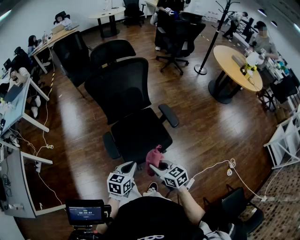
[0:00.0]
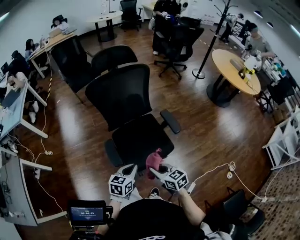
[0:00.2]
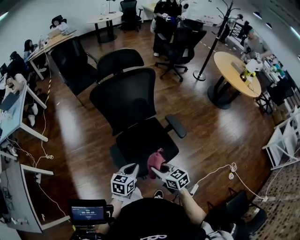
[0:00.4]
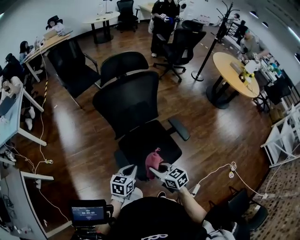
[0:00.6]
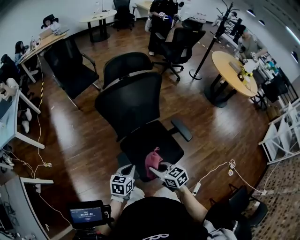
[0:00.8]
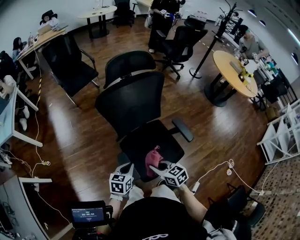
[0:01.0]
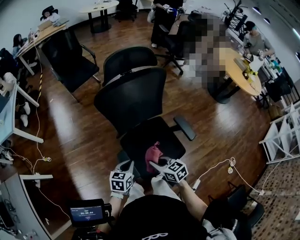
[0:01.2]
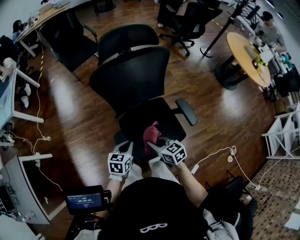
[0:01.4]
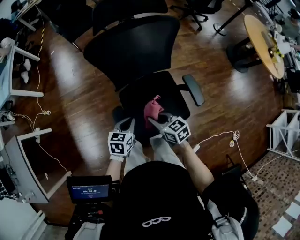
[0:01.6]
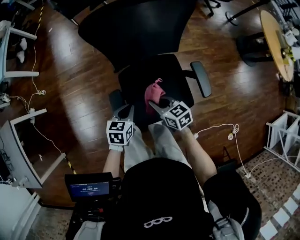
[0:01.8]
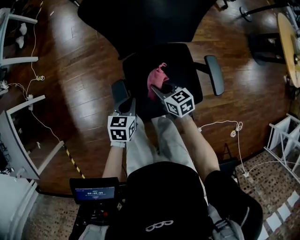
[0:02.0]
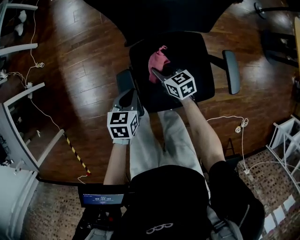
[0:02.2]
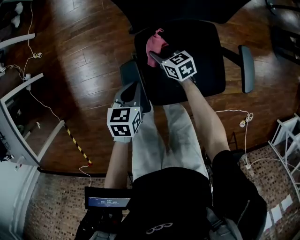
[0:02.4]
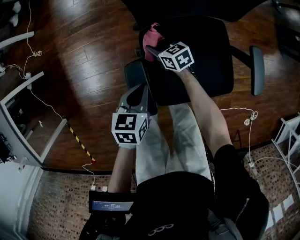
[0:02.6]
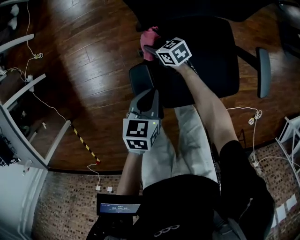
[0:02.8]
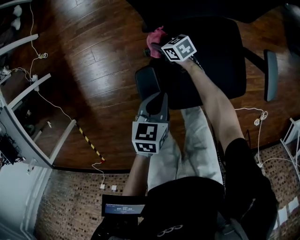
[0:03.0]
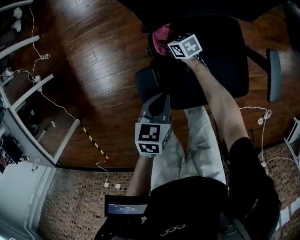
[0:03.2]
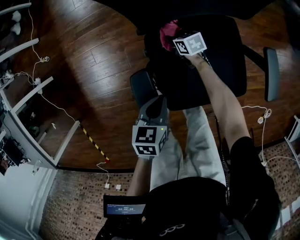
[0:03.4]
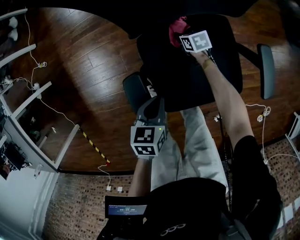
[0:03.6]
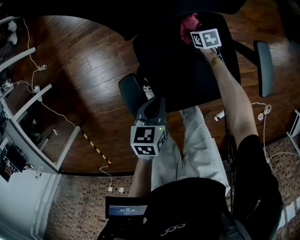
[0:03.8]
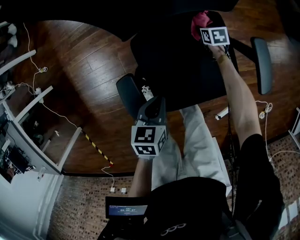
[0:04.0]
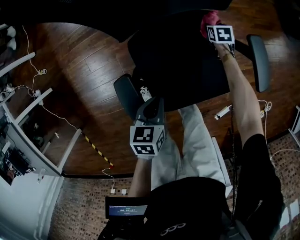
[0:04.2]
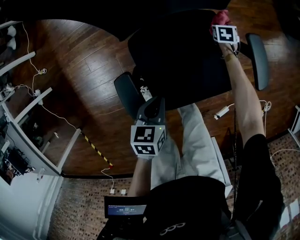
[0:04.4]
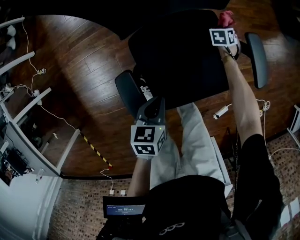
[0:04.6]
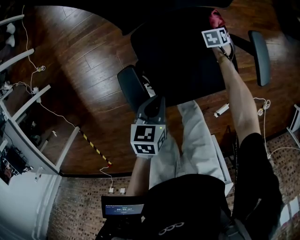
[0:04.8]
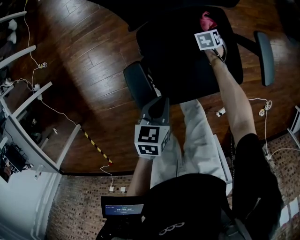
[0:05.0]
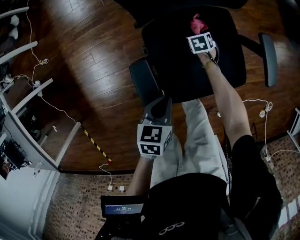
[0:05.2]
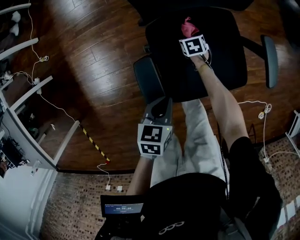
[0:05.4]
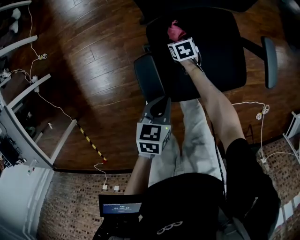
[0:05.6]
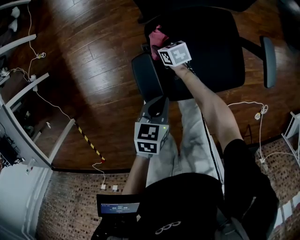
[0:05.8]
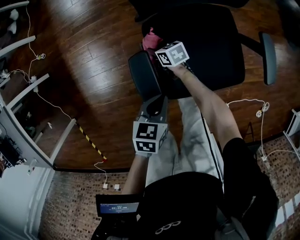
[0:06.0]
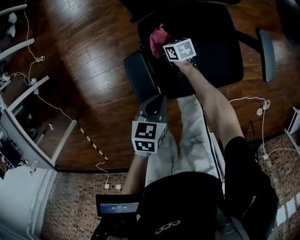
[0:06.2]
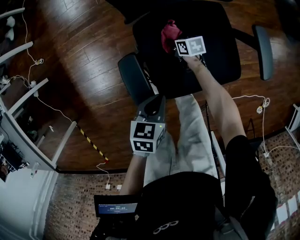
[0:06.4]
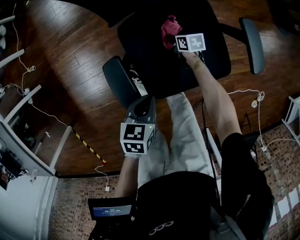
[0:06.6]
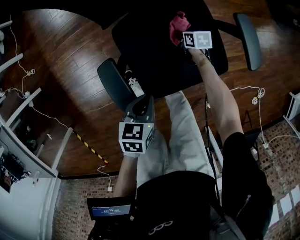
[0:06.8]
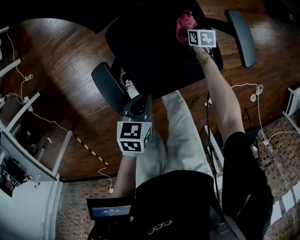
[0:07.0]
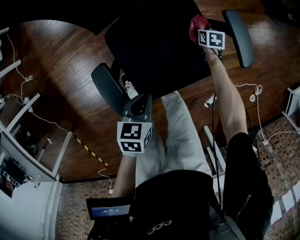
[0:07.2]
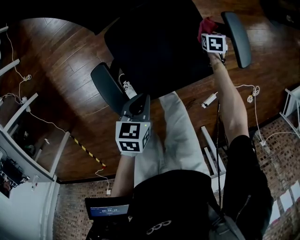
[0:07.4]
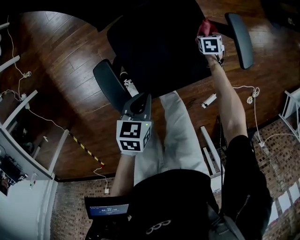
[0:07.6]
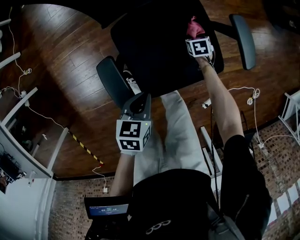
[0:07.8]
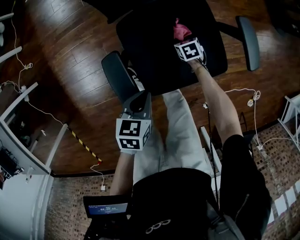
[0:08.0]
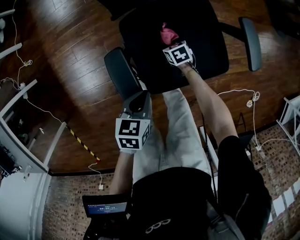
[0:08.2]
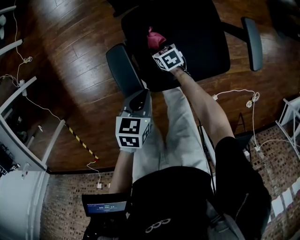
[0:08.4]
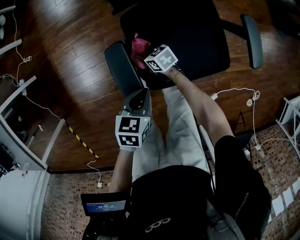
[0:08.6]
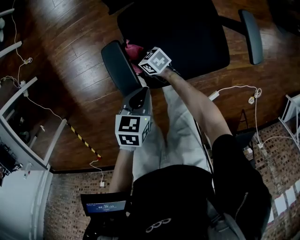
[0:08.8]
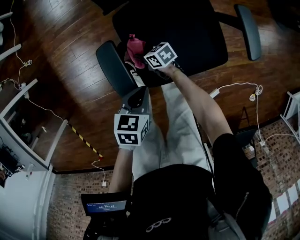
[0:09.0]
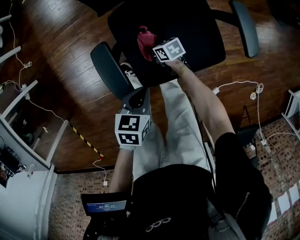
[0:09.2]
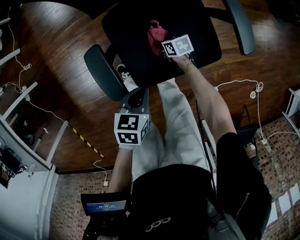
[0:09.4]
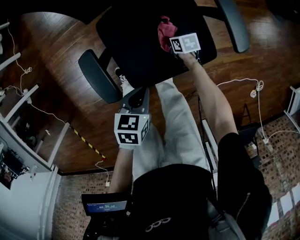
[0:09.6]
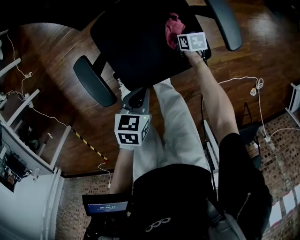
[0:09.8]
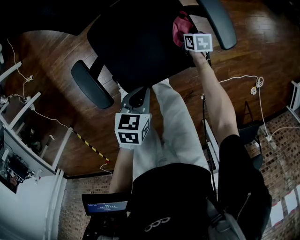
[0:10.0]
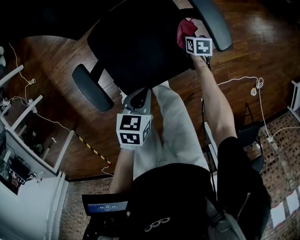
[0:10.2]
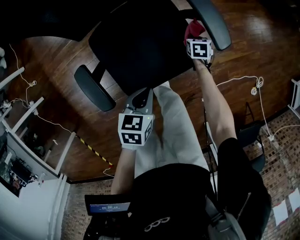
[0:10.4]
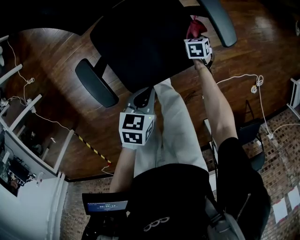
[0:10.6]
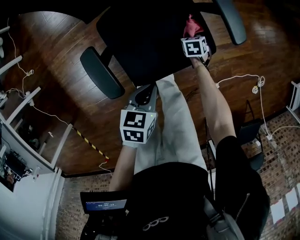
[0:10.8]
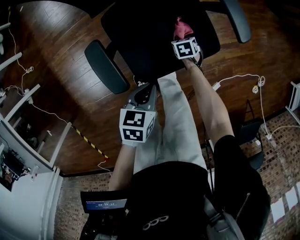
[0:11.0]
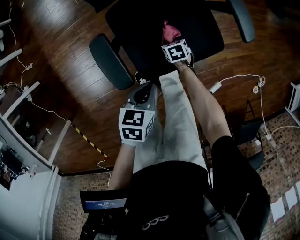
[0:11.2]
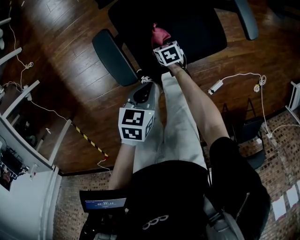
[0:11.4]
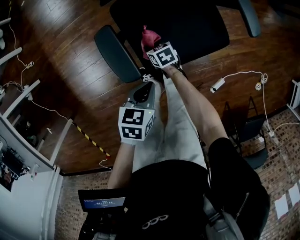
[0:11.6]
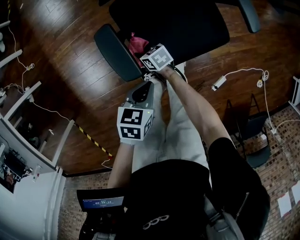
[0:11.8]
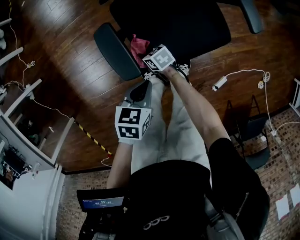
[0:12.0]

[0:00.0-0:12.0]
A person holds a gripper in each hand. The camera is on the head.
0:00.0 to 0:01.6: Both grippers move forward, approximately 20 cm.
0:01.6 to 0:03.0: The left gripper travels downward by about 20 cm. The right gripper travels downward and forward by some 40 cm, and changes its angle by roughly 20 degrees.
0:03.0 to 0:04.4: The left gripper changes place by some 5 cm; the right gripper ends up roughly 40 cm from where it was, and changes its angle by about 60 degrees.
0:04.4 to 0:06.0: The right gripper changes place by roughly 40 cm, and swivels some 50 degrees. The left gripper moves approximately 10 cm.
0:06.0 to 0:07.6: The left gripper changes place by roughly 10 cm. Meanwhile the right gripper moves about 40 cm, and swivels approximately 50 degrees.
0:07.6 to 0:09.0: The right gripper moves approximately 40 cm, and points its fingers some 30 degrees further upward, while the left gripper ends up approximately 5 cm from where it was.
0:09.0 to 0:10.4: The right gripper moves roughly 40 cm, and changes its angle by approximately 60 degrees; the left gripper shifts by about 15 cm.
0:10.4 to 0:12.0: The left gripper moves about 15 cm; the right gripper ends up roughly 40 cm from where it was, and turns by approximately 50 degrees.

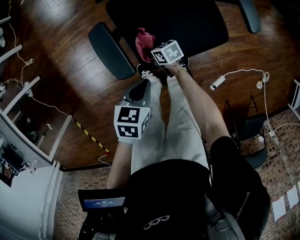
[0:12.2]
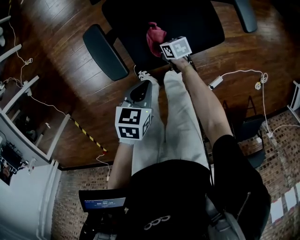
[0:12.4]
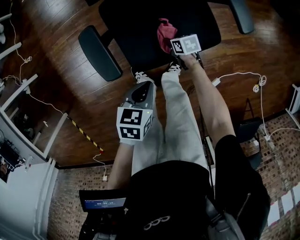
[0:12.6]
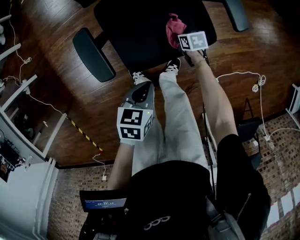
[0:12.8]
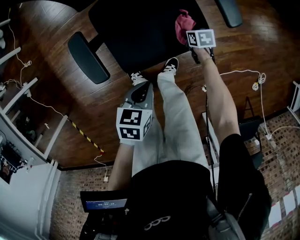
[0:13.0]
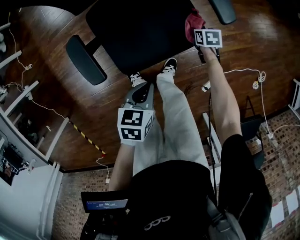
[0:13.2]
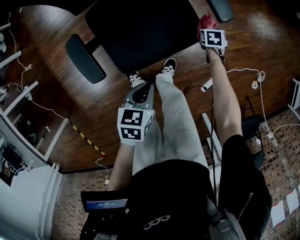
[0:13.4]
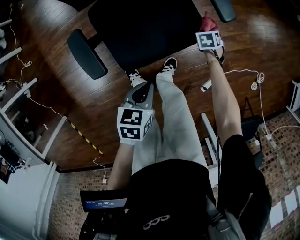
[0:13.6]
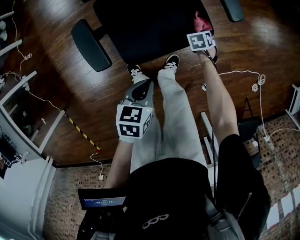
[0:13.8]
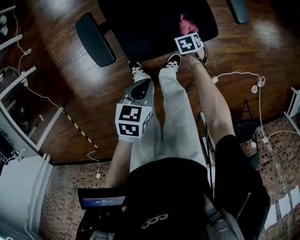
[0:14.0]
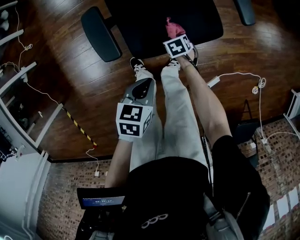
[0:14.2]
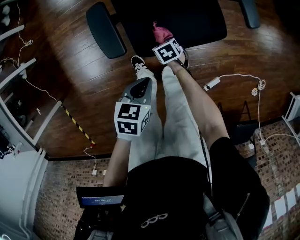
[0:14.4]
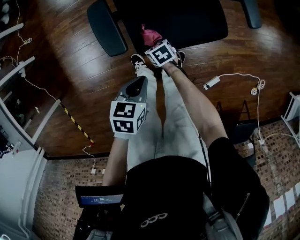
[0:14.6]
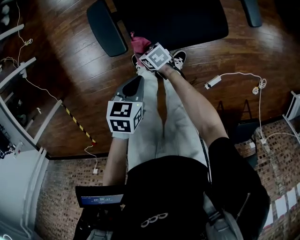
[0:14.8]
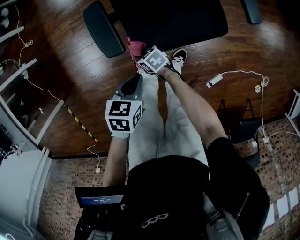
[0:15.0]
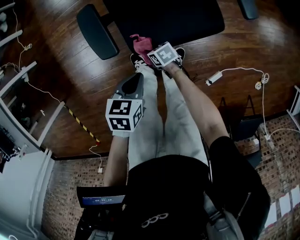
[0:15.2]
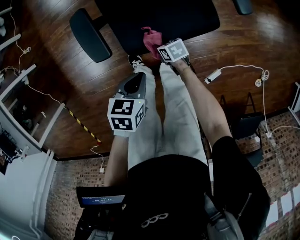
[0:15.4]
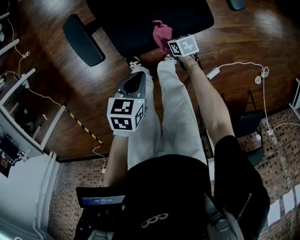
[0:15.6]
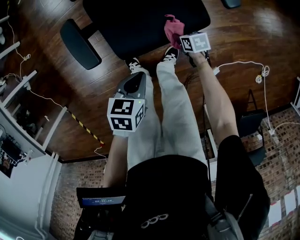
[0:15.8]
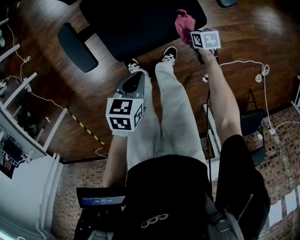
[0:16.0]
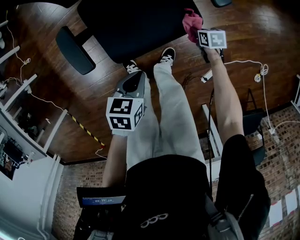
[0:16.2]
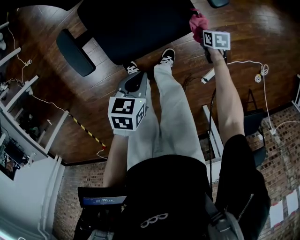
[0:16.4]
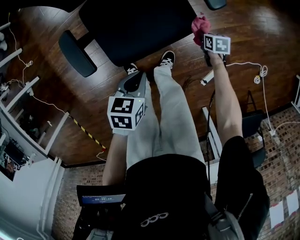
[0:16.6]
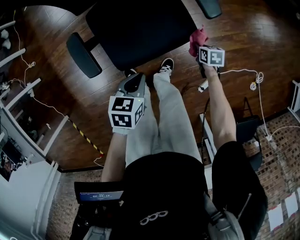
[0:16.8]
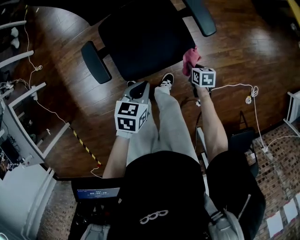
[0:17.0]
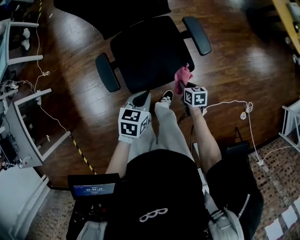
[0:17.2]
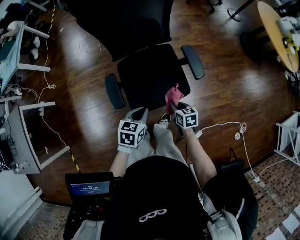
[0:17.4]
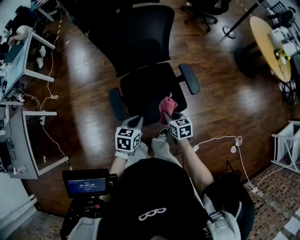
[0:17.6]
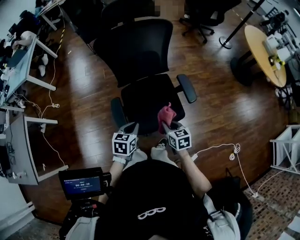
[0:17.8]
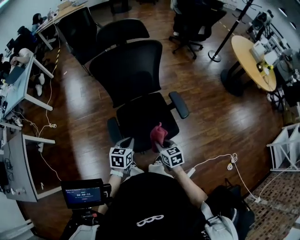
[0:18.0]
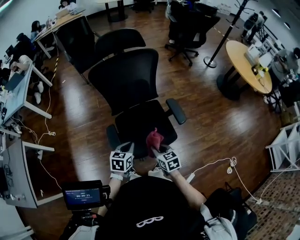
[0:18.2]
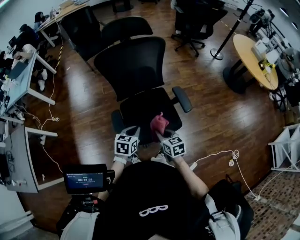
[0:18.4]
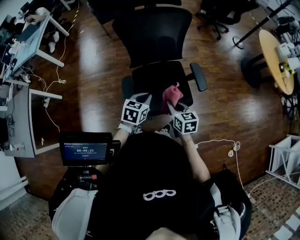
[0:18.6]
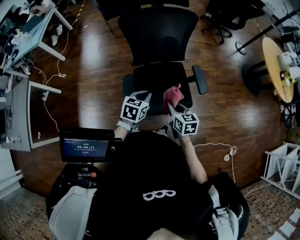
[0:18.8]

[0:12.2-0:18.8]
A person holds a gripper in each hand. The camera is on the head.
0:12.2 to 0:13.8: The right gripper shifts by roughly 35 cm, and tilts its fingers about 30 degrees downward. The left gripper ends up about 10 cm from where it was.
0:13.8 to 0:15.4: The right gripper turns by roughly 40 degrees.
0:15.4 to 0:17.2: The grippers both shift upward by some 15 cm. The right gripper changes its angle by about 30 degrees.
0:17.2 to 0:18.8: The left gripper shifts about 15 cm upward, to the left and forward. Meanwhile the right gripper is displaced upward and to the left by some 30 cm, and swivels roughly 20 degrees.

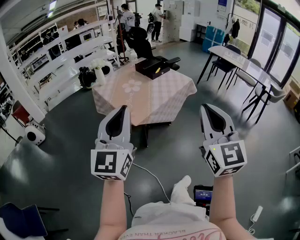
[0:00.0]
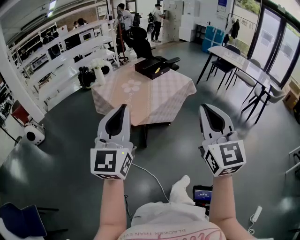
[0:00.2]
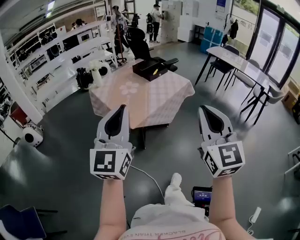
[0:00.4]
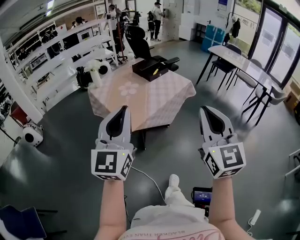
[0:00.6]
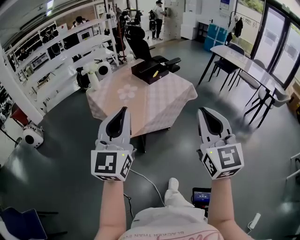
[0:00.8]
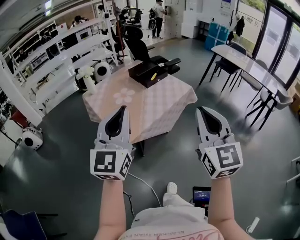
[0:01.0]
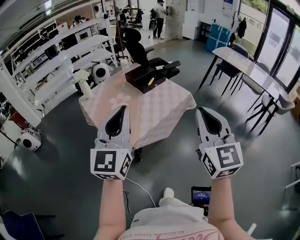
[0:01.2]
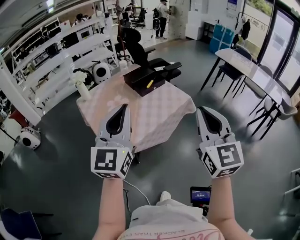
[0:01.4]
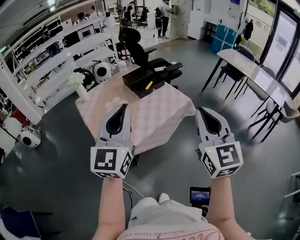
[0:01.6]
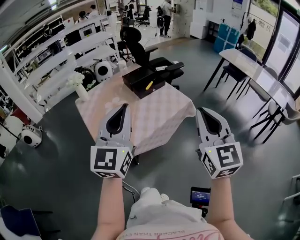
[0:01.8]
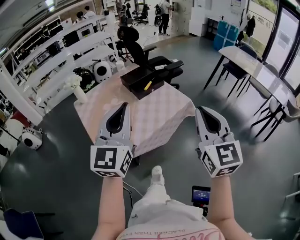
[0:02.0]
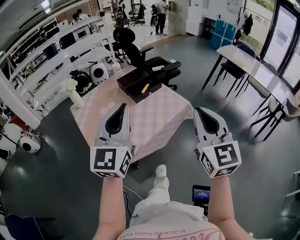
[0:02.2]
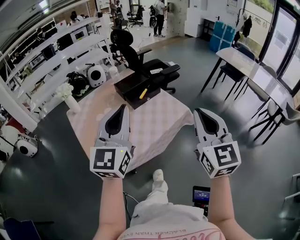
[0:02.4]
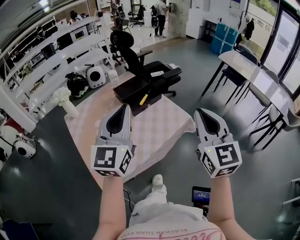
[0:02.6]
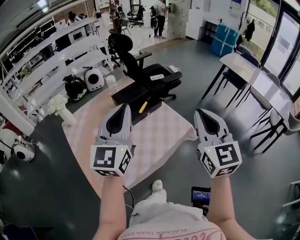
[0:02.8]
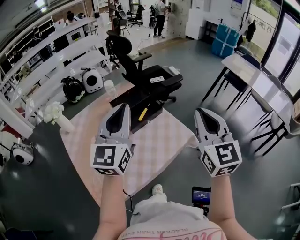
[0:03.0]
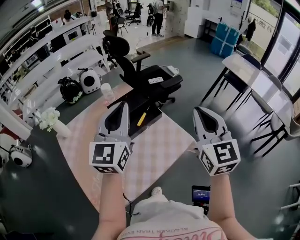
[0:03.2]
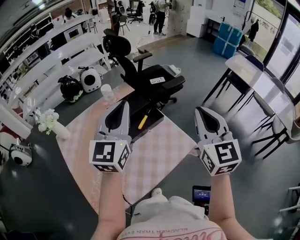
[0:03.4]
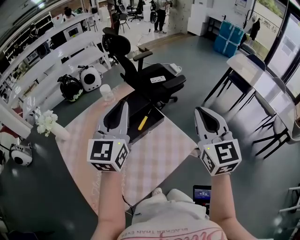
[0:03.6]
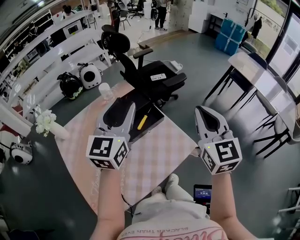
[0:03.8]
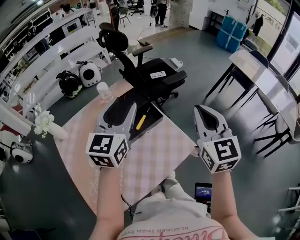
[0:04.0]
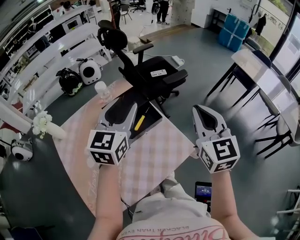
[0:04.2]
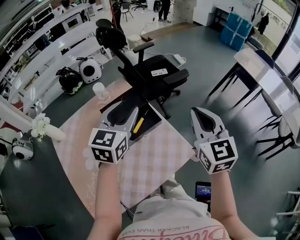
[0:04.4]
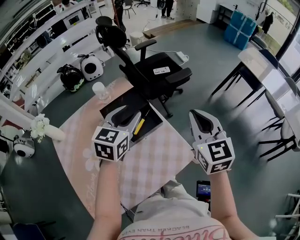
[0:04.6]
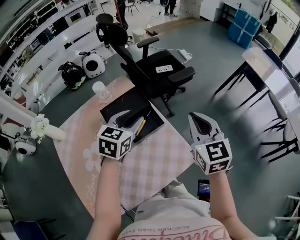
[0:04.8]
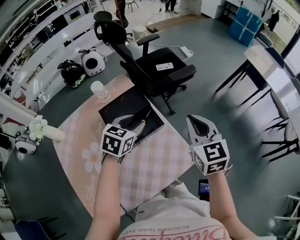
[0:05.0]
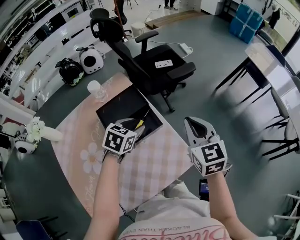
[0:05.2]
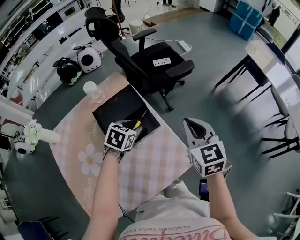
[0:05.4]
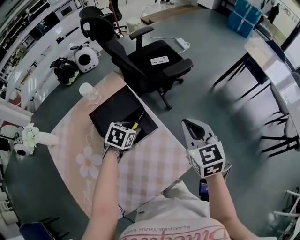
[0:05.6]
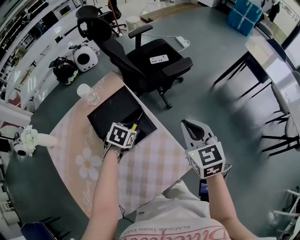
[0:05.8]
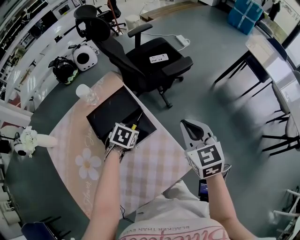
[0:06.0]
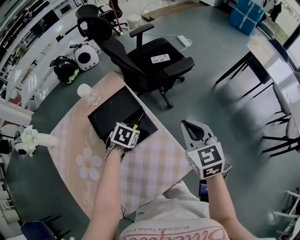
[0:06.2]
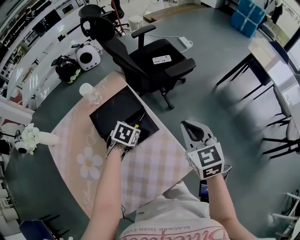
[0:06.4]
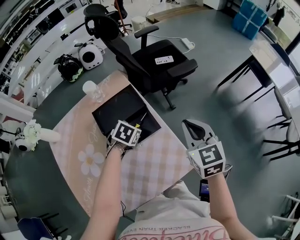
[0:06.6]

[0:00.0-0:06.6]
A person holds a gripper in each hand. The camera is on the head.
0:00.0 to 0:01.6: The two grippers go approximately 35 cm forward and to the right.
0:01.6 to 0:03.2: Both grippers move forward, some 35 cm.
0:03.2 to 0:05.0: The right gripper moves forward and downward, roughly 25 cm, and swivels approximately 20 degrees, while the left gripper is displaced downward and forward by some 30 cm, angles its fingers downward, by approximately 50 degrees, and opens its fingers.
0:05.0 to 0:06.6: The right gripper moves about 5 cm, while the left gripper goes about 15 cm downward, rotates approximately 30 degrees, and closes.
